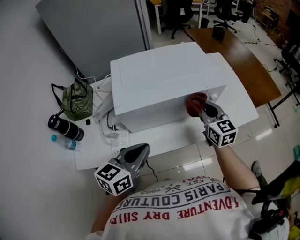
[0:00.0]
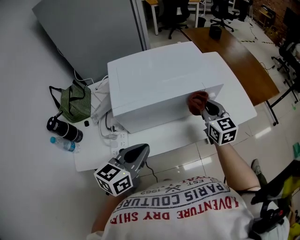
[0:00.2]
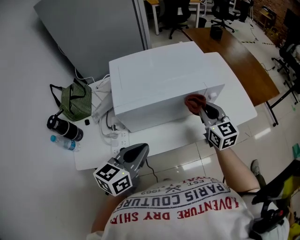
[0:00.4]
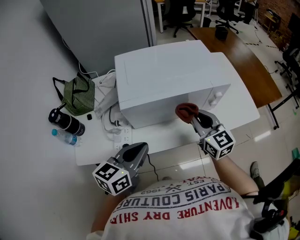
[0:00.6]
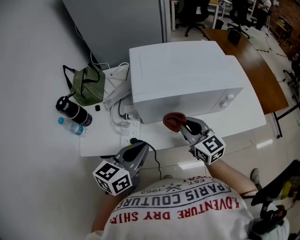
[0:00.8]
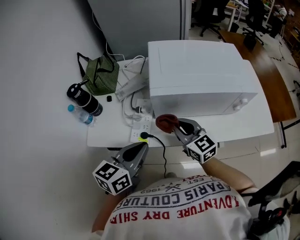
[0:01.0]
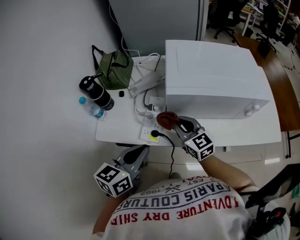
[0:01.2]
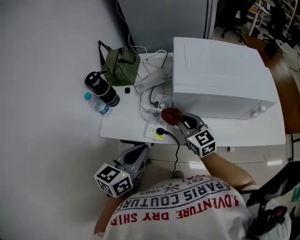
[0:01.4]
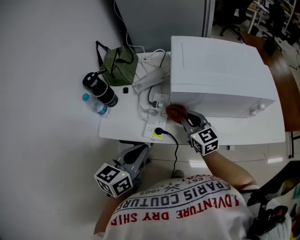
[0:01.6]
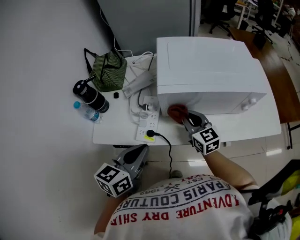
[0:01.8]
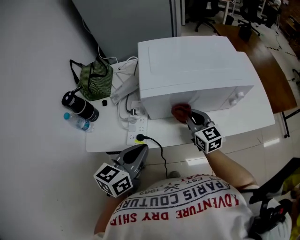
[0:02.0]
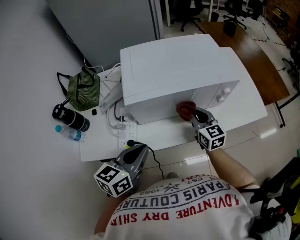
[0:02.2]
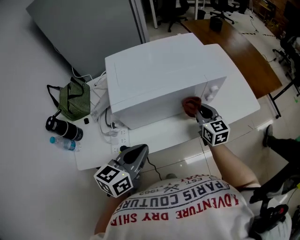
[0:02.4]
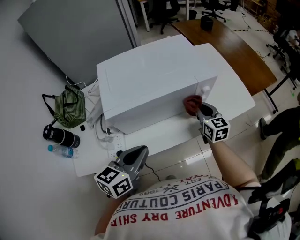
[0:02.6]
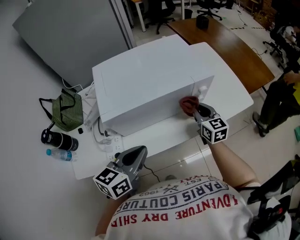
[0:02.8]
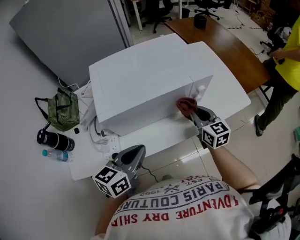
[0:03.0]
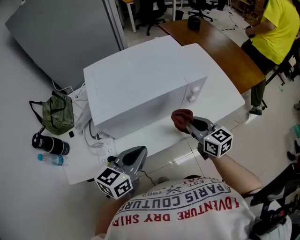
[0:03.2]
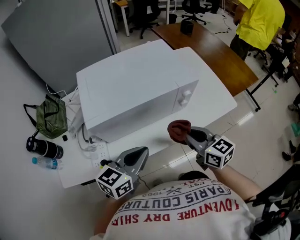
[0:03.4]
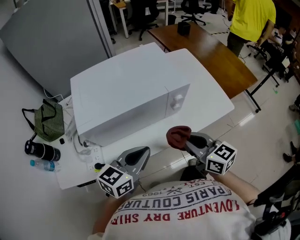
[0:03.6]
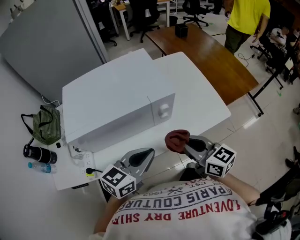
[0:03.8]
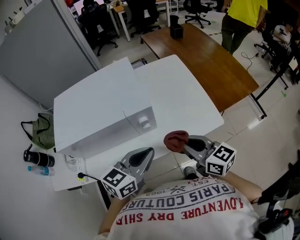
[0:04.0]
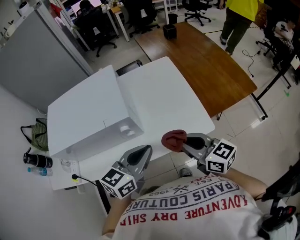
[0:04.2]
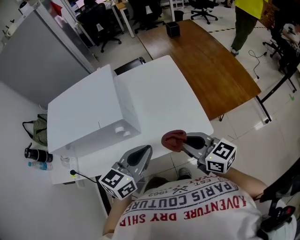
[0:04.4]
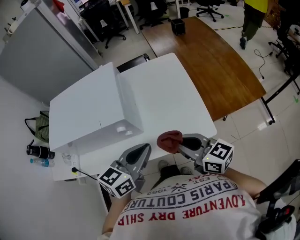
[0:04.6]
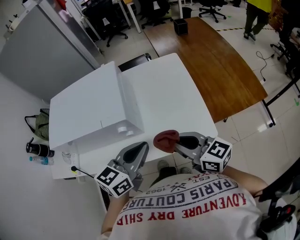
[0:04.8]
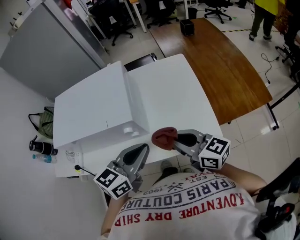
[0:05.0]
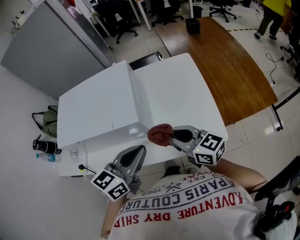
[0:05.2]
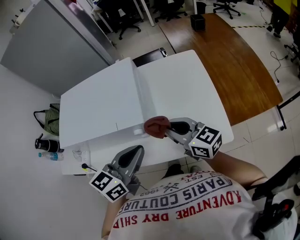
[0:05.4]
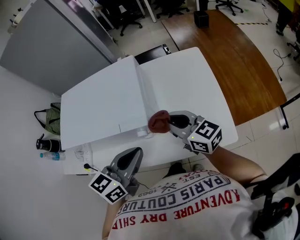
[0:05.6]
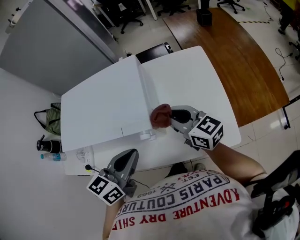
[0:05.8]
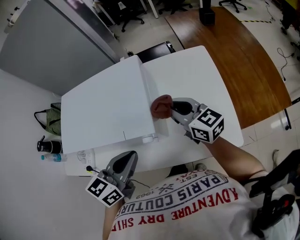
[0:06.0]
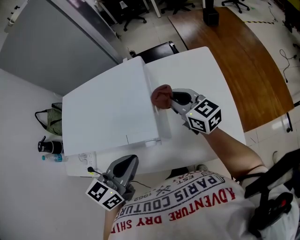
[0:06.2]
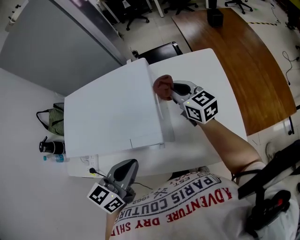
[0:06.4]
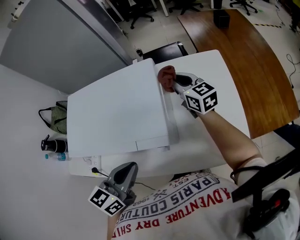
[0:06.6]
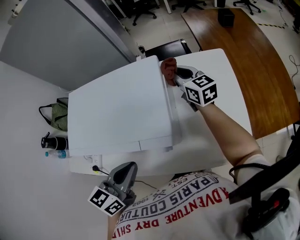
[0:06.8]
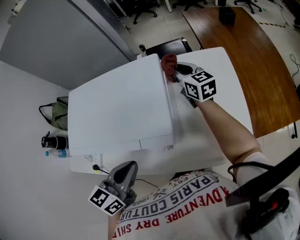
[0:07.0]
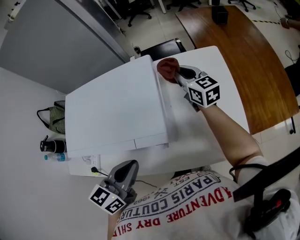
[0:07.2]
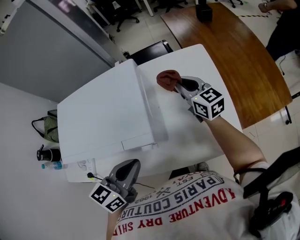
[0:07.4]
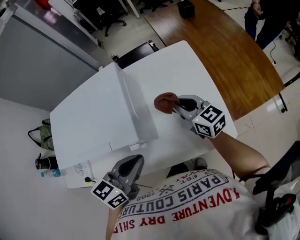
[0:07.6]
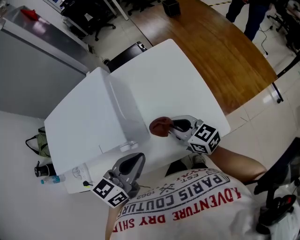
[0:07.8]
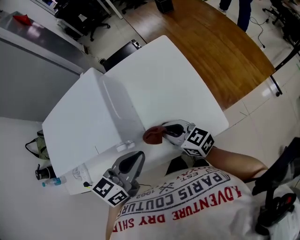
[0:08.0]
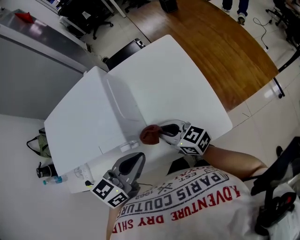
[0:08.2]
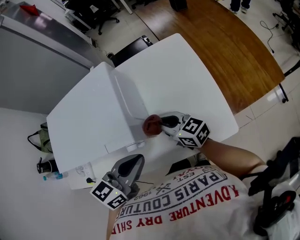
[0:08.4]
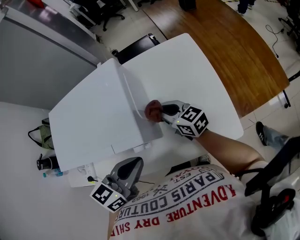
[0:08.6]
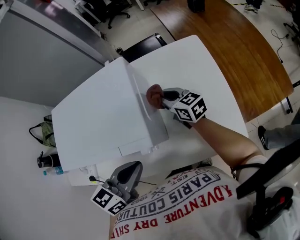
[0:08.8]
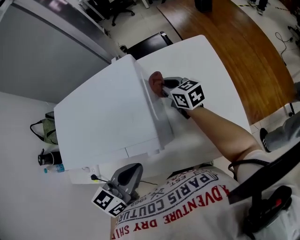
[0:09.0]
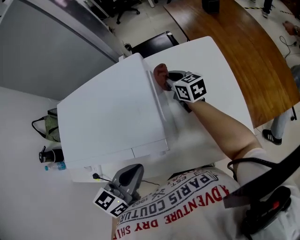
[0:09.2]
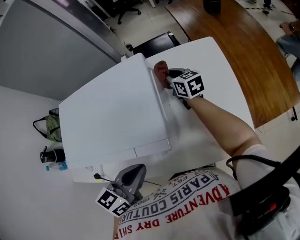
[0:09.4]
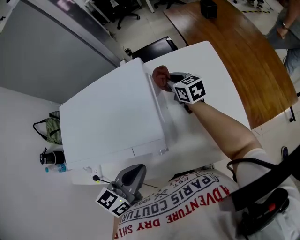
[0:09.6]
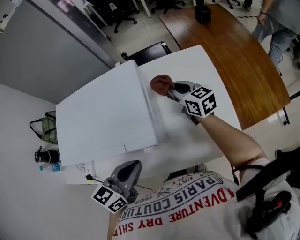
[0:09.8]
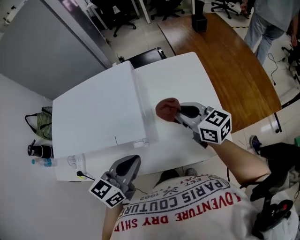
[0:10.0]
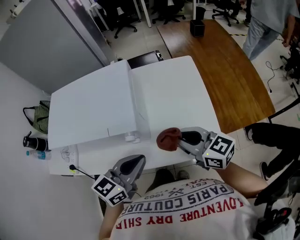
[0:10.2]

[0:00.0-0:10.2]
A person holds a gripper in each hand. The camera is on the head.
0:00.0 to 0:01.4: The left gripper shifts by roughly 15 cm, and turns by roughly 20 degrees. The right gripper ends up about 30 cm from where it was, and turns by some 30 degrees.
0:01.4 to 0:03.0: The right gripper changes place by roughly 35 cm, and rotates about 30 degrees. Meanwhile the left gripper moves some 20 cm, and swivels roughly 30 degrees.
0:03.0 to 0:04.4: Both grippers travel together to the right, about 30 cm. The right gripper swivels about 30 degrees.
0:04.4 to 0:05.8: The right gripper moves forward and to the left, some 20 cm, while the left gripper travels to the left and forward by roughly 15 cm.
0:05.8 to 0:07.2: The left gripper shifts about 5 cm to the left; the right gripper is displaced forward by about 20 cm.
0:07.2 to 0:08.8: The left gripper travels to the right and back again, roughly 15 cm each way. The right gripper moves downward, approximately 10 cm, and reaches approximately 25 cm backward, then returns.
0:08.8 to 0:10.2: The right gripper is displaced backward and upward by roughly 25 cm, while the left gripper travels to the right by roughly 5 cm.

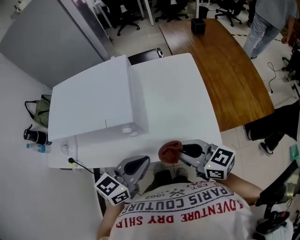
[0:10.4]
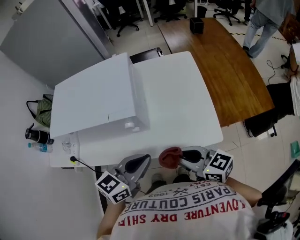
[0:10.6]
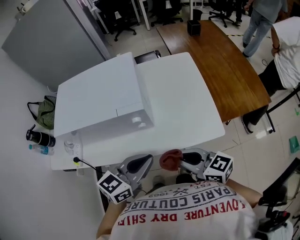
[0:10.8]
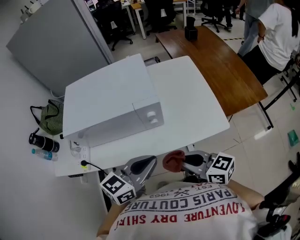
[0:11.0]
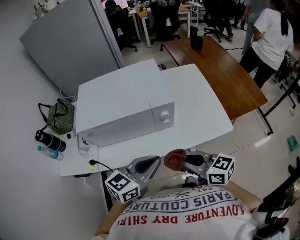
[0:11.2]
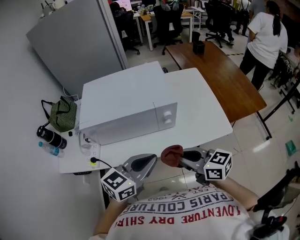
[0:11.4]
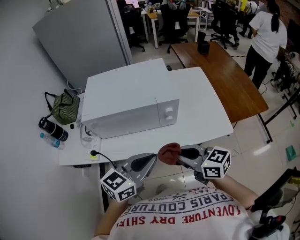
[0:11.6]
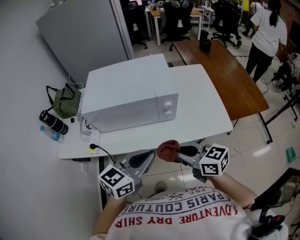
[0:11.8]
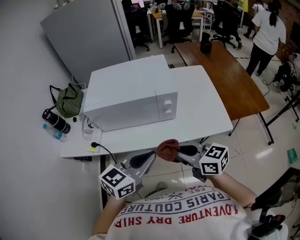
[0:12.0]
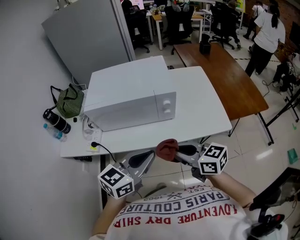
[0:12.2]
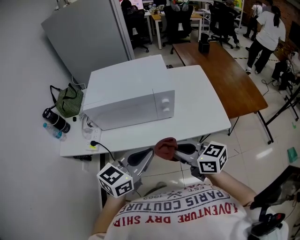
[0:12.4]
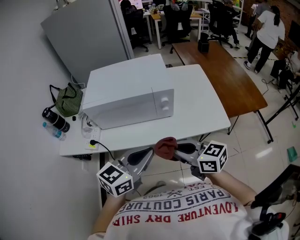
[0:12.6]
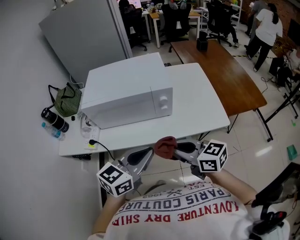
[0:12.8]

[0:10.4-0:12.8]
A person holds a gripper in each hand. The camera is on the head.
0:10.4 to 0:11.6: Both grippers travel together to the left and backward, some 20 cm.
0:11.6 to 0:12.8: The grippers make only small movements.

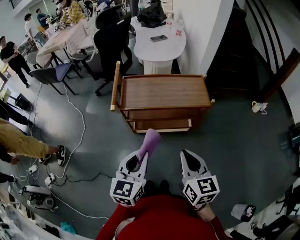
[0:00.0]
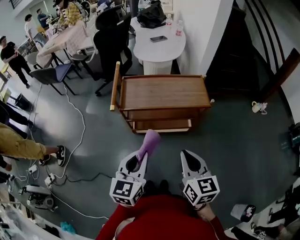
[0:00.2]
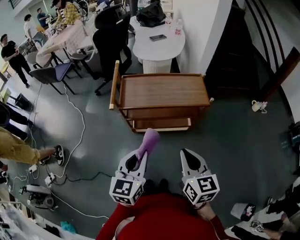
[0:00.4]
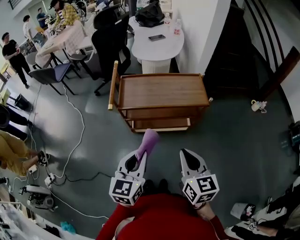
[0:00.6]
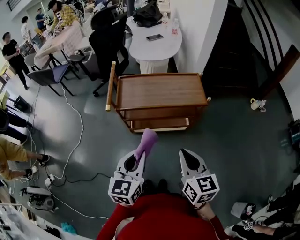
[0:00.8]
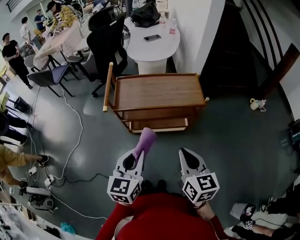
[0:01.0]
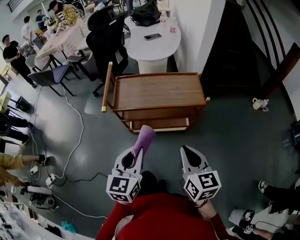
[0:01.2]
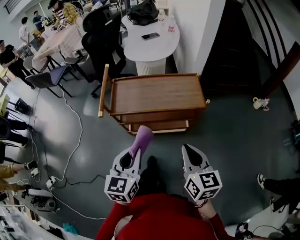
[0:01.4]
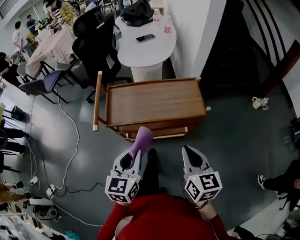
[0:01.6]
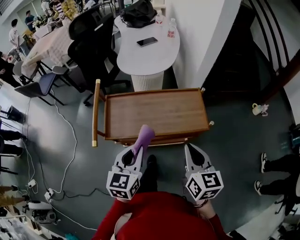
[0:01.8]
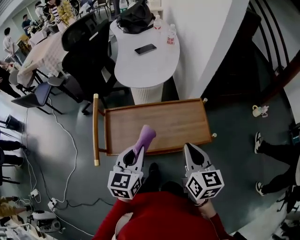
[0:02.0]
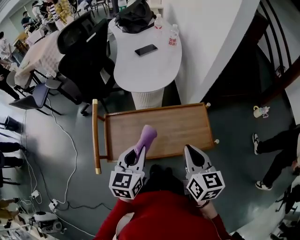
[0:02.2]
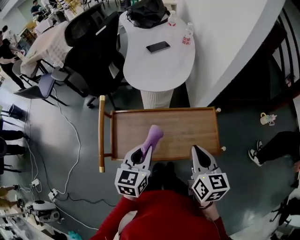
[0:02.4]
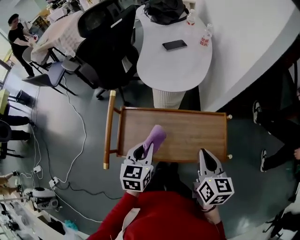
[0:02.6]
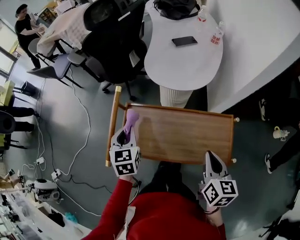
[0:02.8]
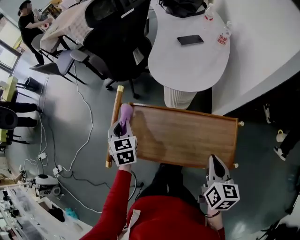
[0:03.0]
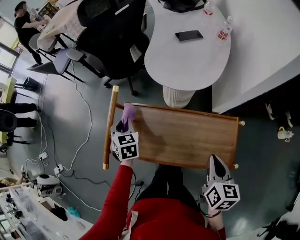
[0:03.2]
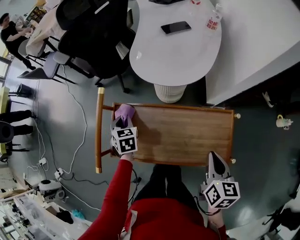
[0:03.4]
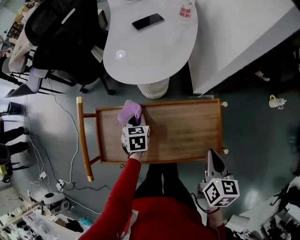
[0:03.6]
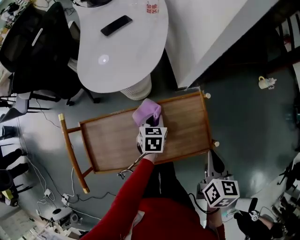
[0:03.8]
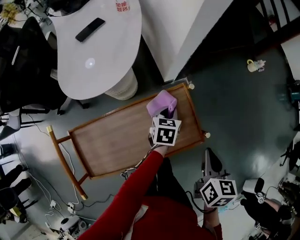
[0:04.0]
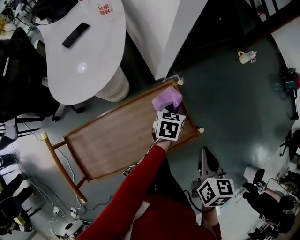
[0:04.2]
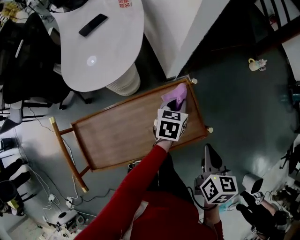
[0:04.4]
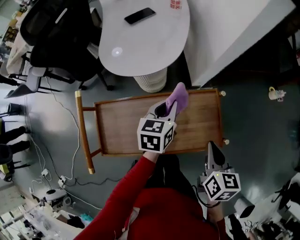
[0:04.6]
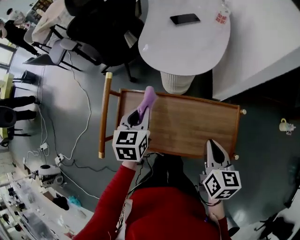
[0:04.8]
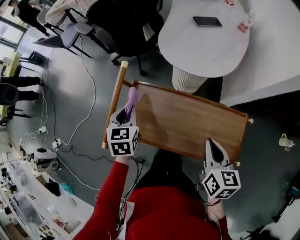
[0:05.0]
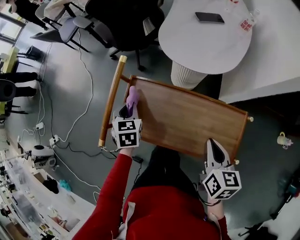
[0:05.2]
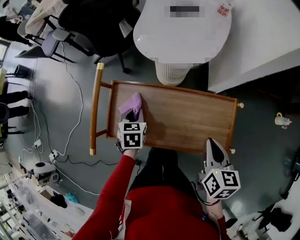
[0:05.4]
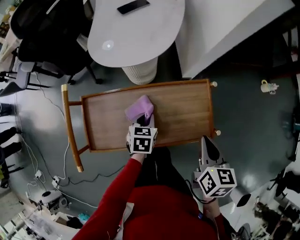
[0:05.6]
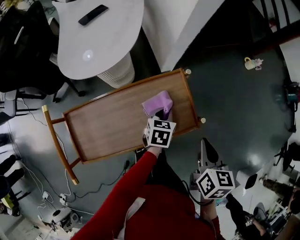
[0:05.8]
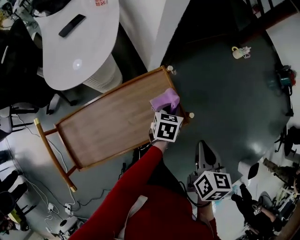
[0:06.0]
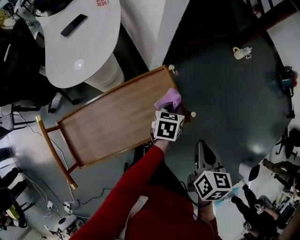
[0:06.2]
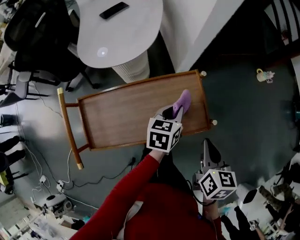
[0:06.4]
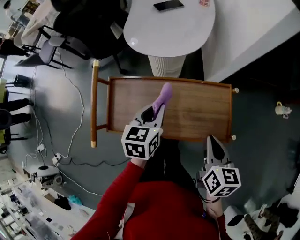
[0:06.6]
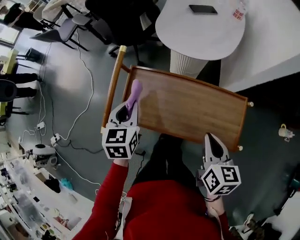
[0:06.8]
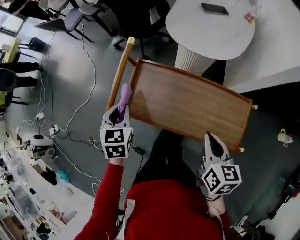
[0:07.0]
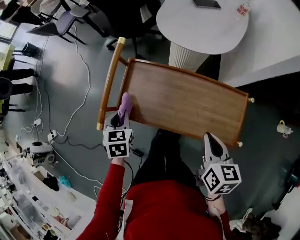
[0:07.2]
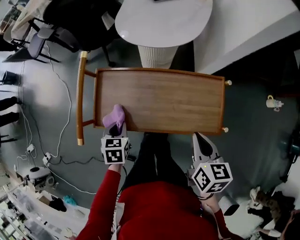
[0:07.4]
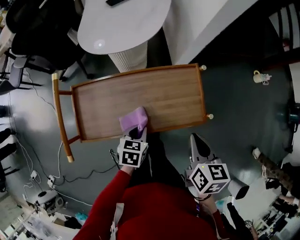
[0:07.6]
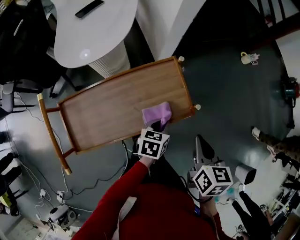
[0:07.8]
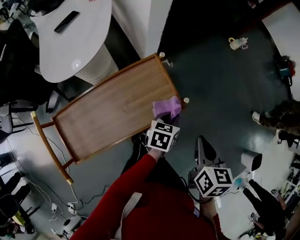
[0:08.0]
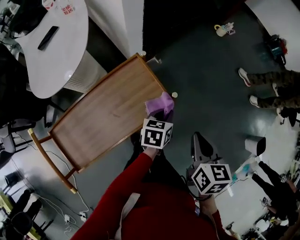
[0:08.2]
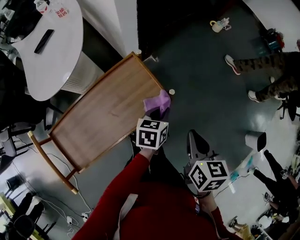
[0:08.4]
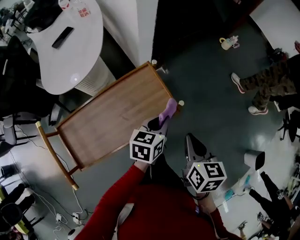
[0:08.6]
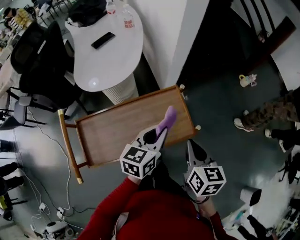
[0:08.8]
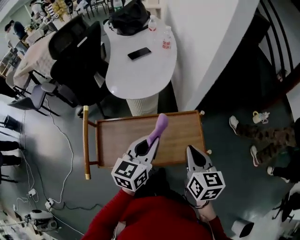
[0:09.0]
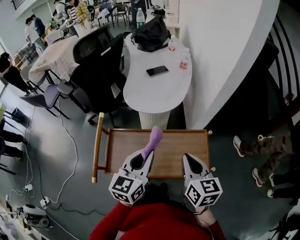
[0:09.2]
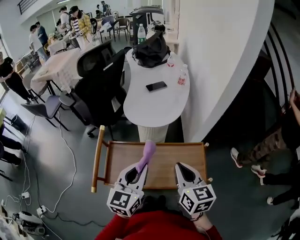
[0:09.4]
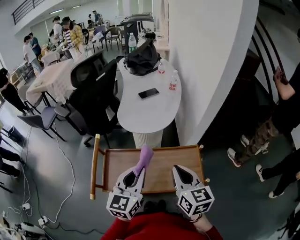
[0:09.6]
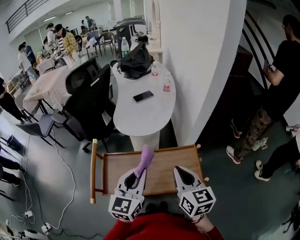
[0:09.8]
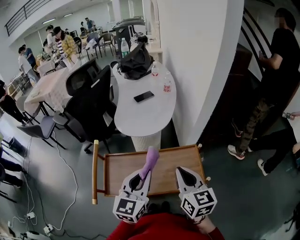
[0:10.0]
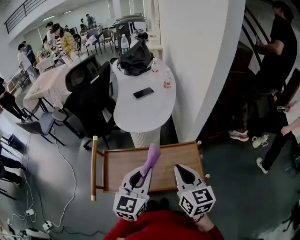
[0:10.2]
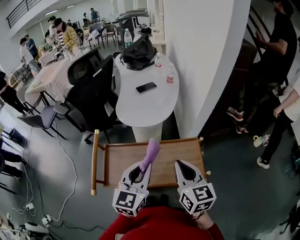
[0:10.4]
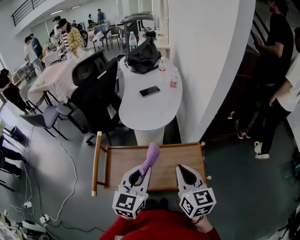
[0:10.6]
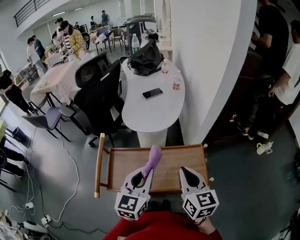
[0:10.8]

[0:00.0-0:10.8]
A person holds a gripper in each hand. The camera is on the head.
0:00.0 to 0:01.6: The right gripper is displaced forward and to the right by about 10 cm; the left gripper goes about 10 cm forward.
0:01.6 to 0:03.0: The right gripper moves about 25 cm, while the left gripper ends up approximately 35 cm from where it was, and turns by approximately 40 degrees.
0:03.0 to 0:04.6: The left gripper moves some 15 cm downward and comes back, and turns by approximately 50 degrees.
0:04.6 to 0:06.2: The left gripper ends up roughly 25 cm from where it was, and changes its angle by about 30 degrees. The right gripper changes place by about 15 cm, and turns by roughly 20 degrees.
0:06.2 to 0:07.8: The left gripper travels upward and back again, some 15 cm each way.
0:07.8 to 0:09.2: The right gripper shifts by roughly 20 cm, and turns by roughly 40 degrees; the left gripper moves upward, approximately 25 cm, and points its fingers approximately 40 degrees further upward.
0:09.2 to 0:10.8: There are only small adjustments of the grippers.
